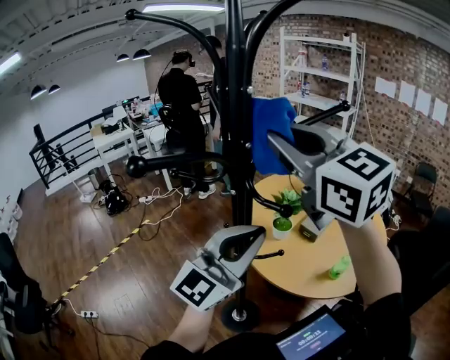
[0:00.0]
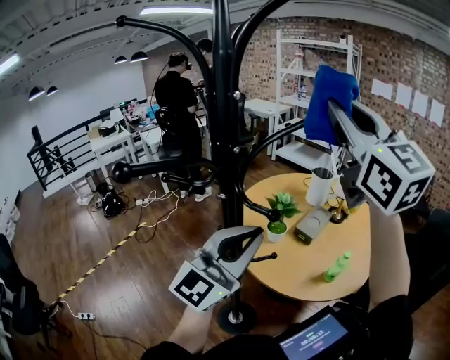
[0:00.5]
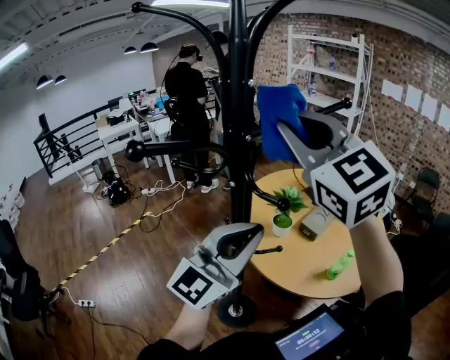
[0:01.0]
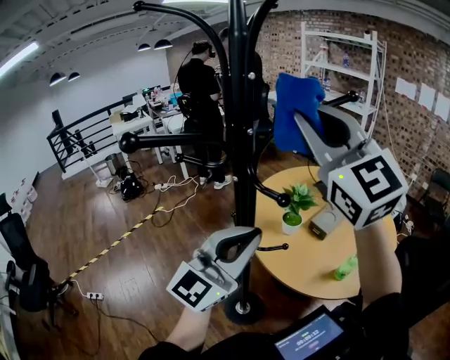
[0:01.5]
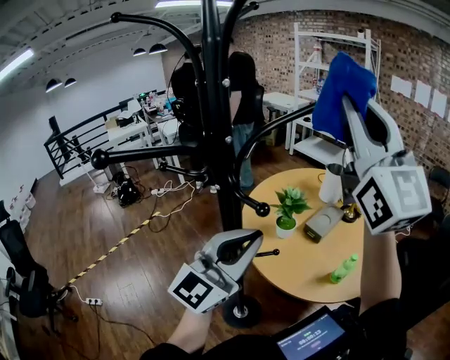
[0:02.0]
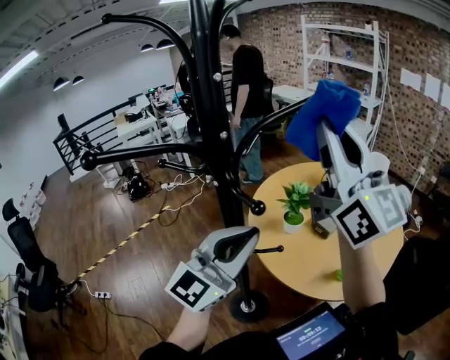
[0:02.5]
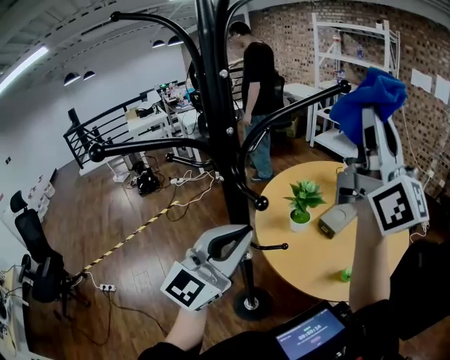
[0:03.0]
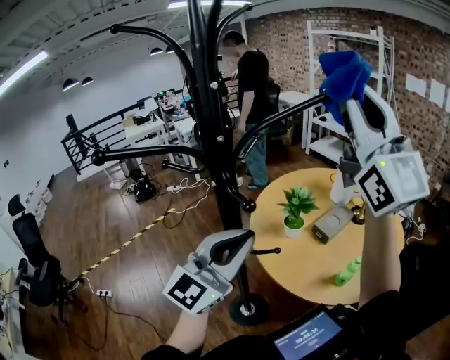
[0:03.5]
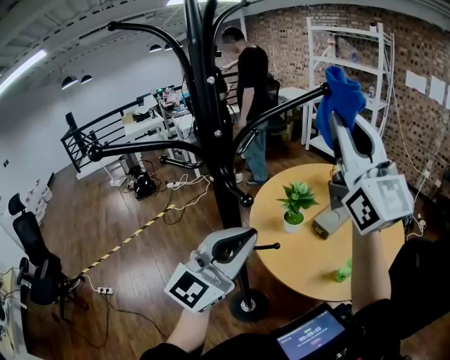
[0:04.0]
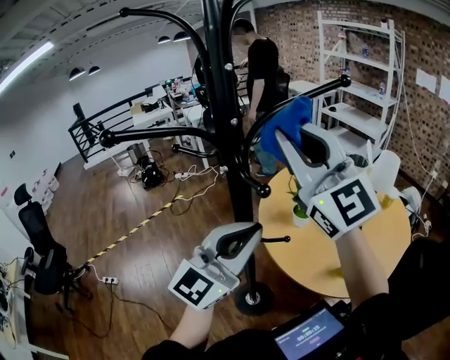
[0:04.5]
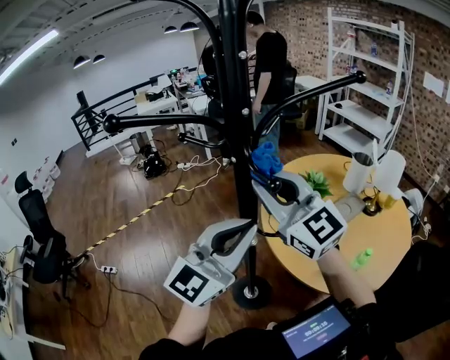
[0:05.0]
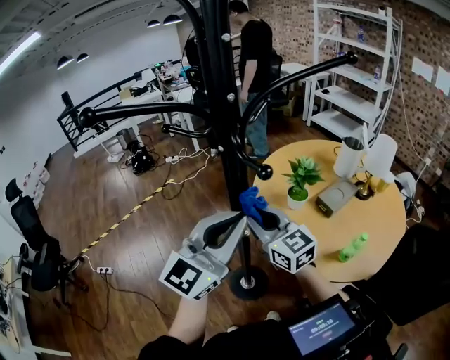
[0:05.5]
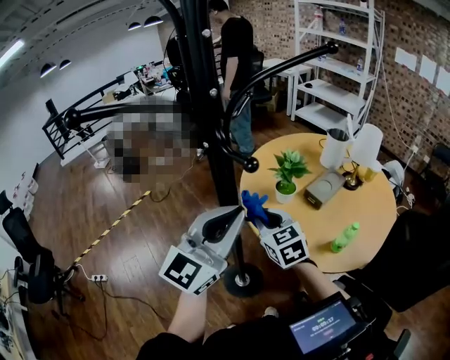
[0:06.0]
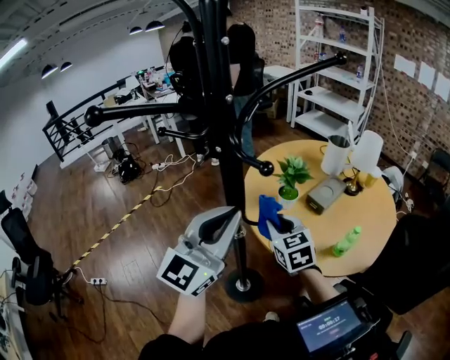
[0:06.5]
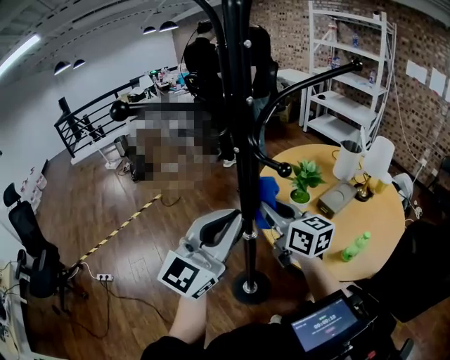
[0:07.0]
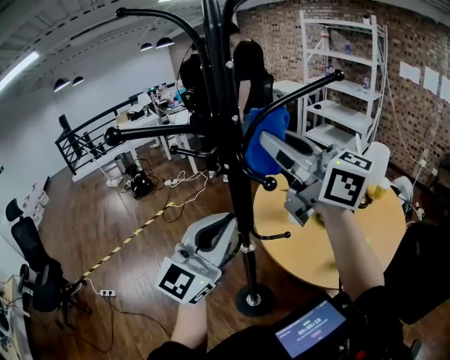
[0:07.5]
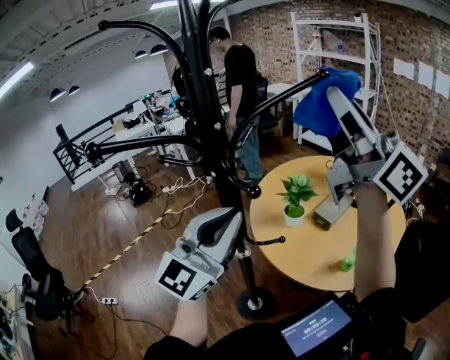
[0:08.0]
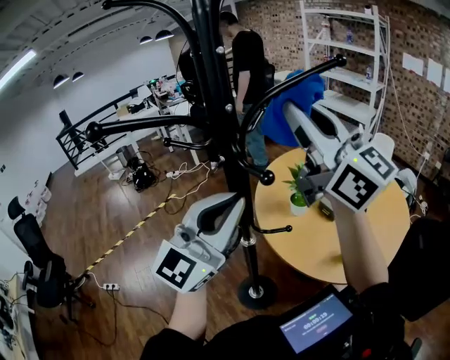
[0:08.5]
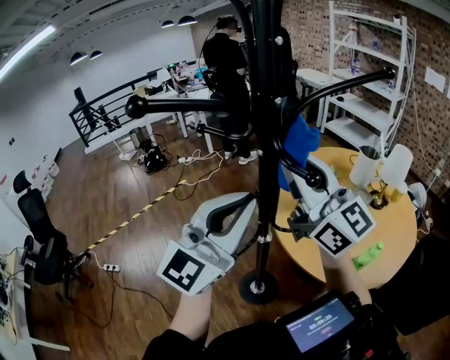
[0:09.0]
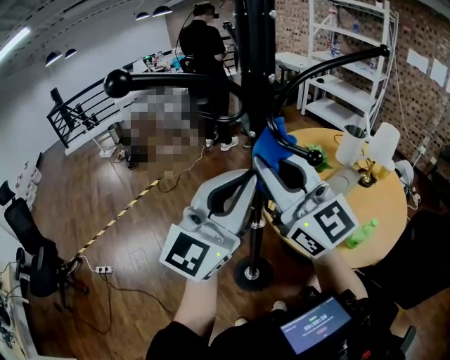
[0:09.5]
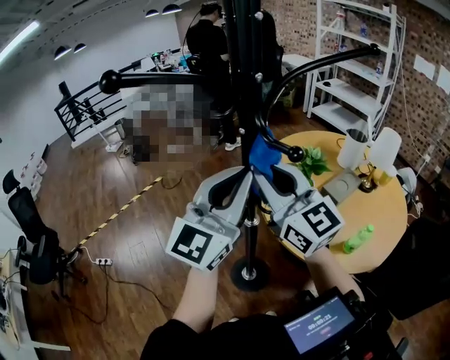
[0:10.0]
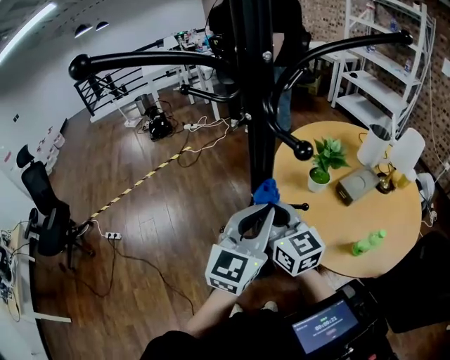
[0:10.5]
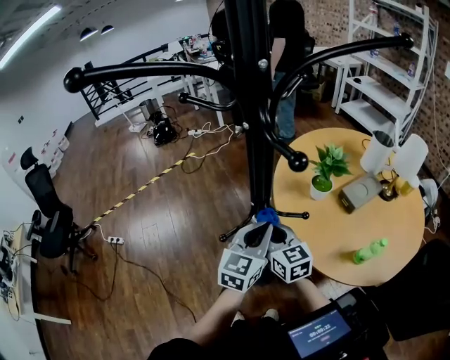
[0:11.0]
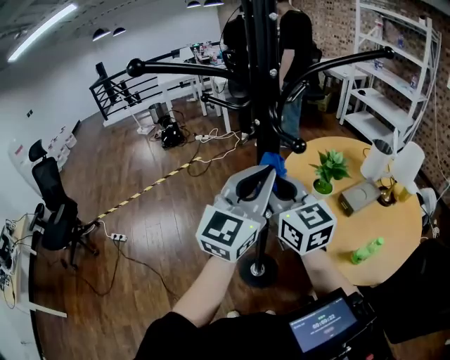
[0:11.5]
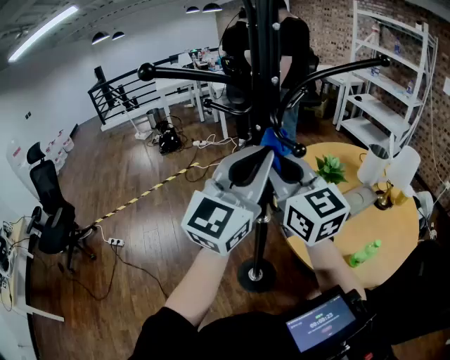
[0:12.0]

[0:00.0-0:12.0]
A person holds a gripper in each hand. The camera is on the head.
0:00.0 to 0:02.0: The right gripper swings left and right, approximately 15 cm each way, with 2 reversals, and swivels roughly 30 degrees.
0:02.0 to 0:04.0: The right gripper moves up and down over about 5 cm, changing direction 2 times.
0:04.0 to 0:06.0: The left gripper goes roughly 5 cm downward; the right gripper heads downward, covering approximately 40 cm, and angles its fingers downward, by about 60 degrees.
0:06.0 to 0:08.0: The left gripper moves upward, approximately 5 cm, while the right gripper goes roughly 40 cm upward, and tips its fingers upward by roughly 60 degrees.
0:08.0 to 0:10.0: The right gripper moves downward and to the left, roughly 30 cm, and changes its angle by some 30 degrees.
0:10.0 to 0:12.0: The left gripper moves roughly 25 cm downward and comes back, while the right gripper moves approximately 30 cm downward and comes back.

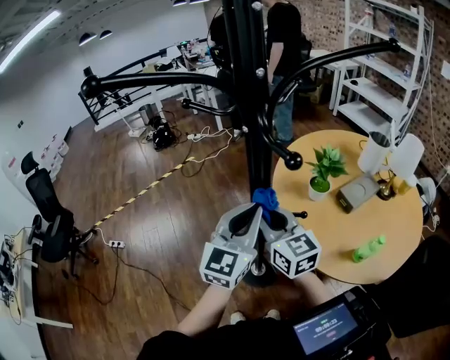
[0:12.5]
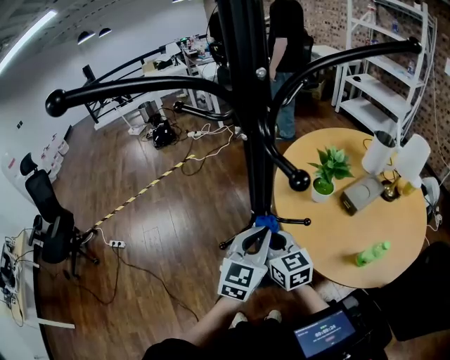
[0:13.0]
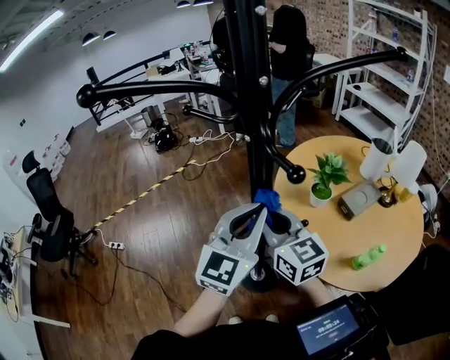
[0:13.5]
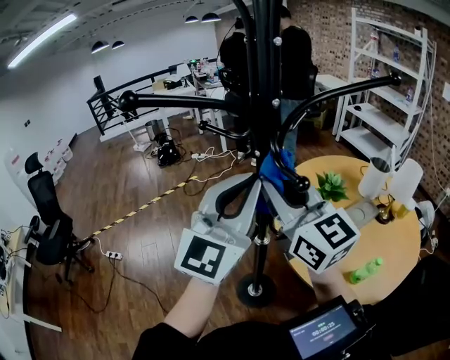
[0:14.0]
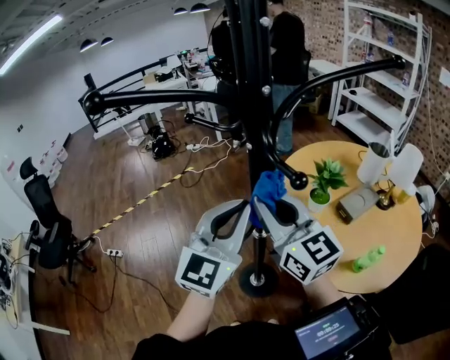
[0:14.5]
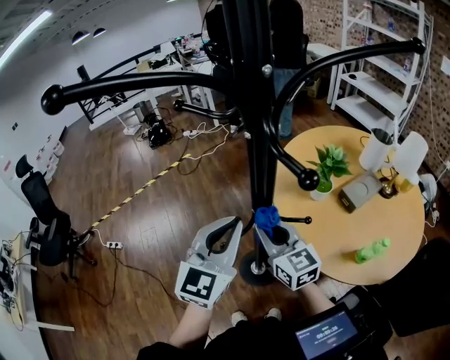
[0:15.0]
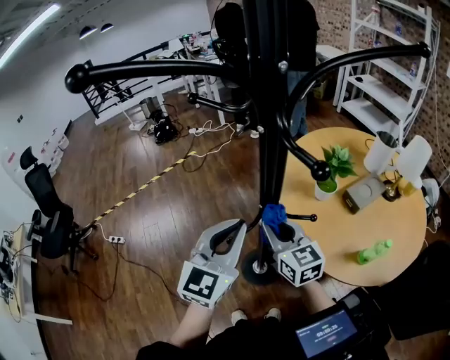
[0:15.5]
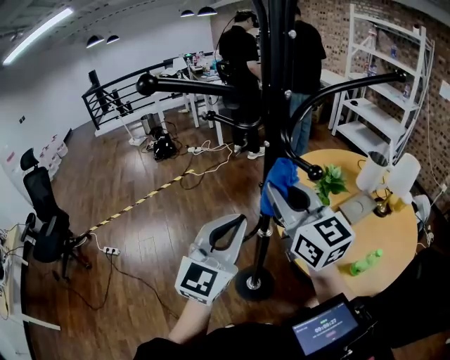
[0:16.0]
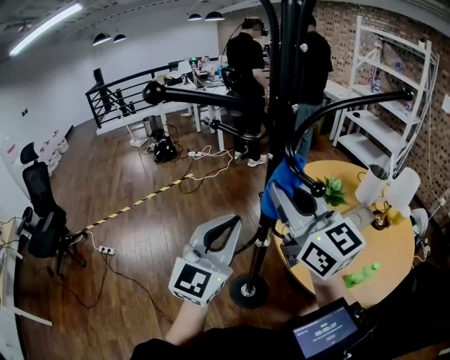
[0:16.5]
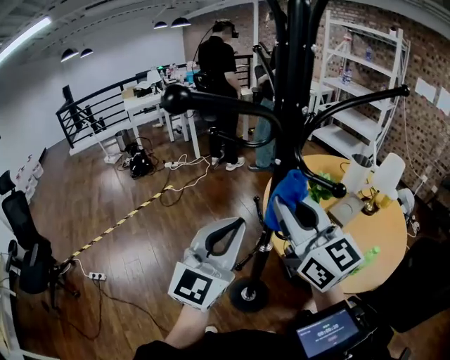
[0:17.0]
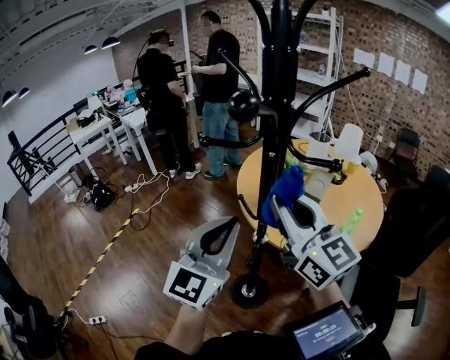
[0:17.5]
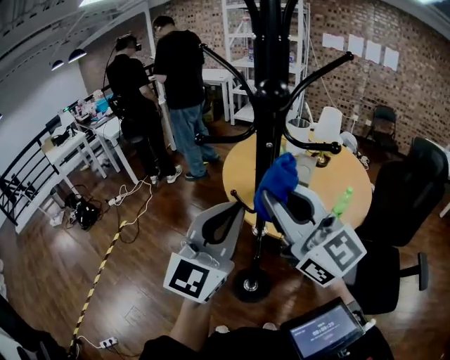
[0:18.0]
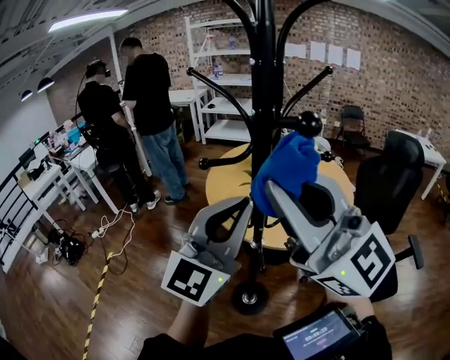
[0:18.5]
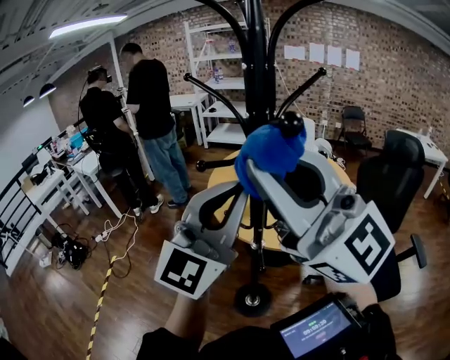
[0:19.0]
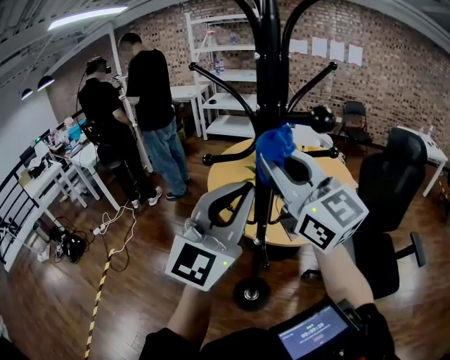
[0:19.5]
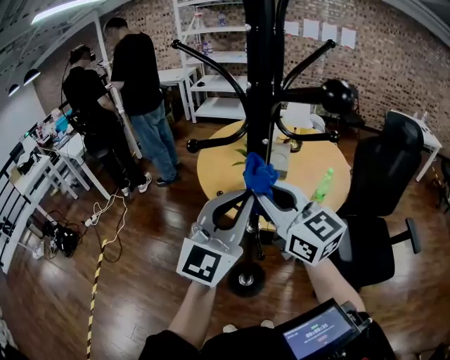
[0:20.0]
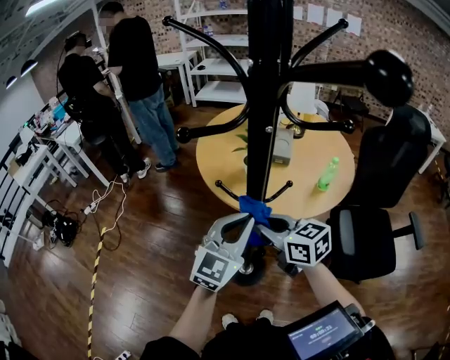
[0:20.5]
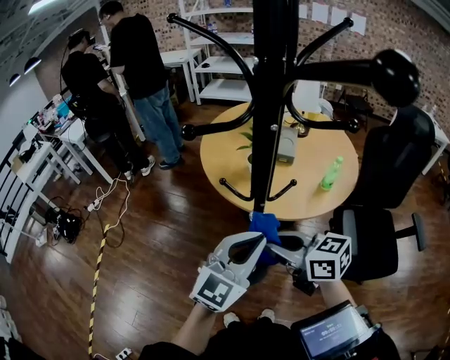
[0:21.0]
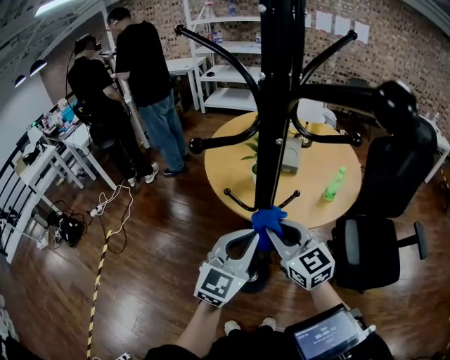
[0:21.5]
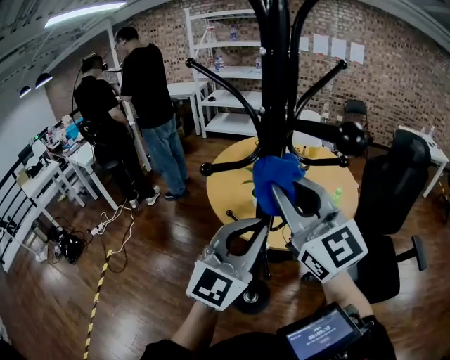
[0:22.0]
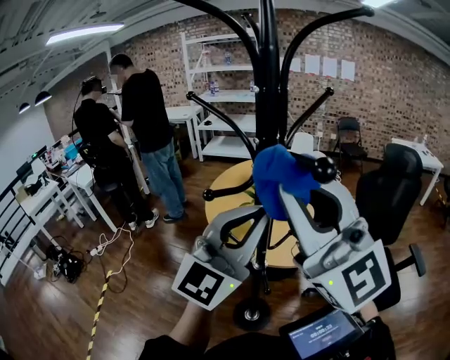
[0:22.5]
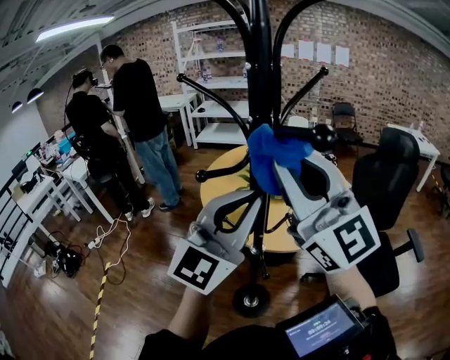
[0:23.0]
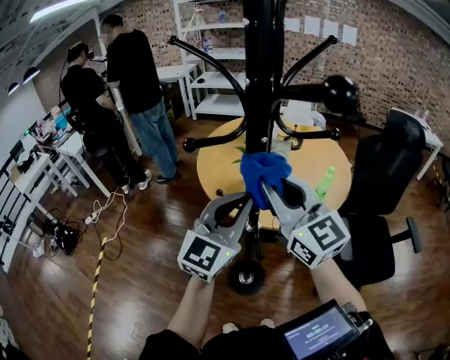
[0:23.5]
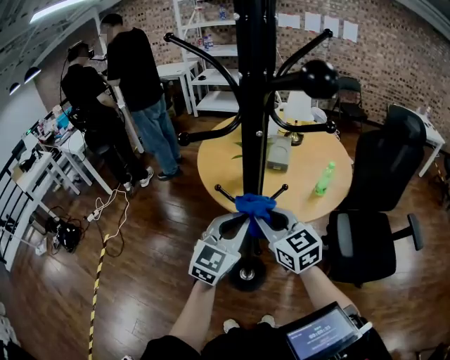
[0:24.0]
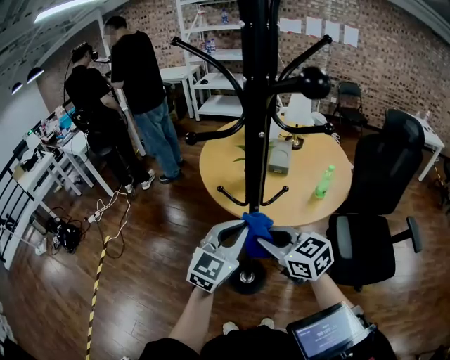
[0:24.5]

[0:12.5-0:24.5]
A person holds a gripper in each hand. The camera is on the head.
0:12.5 to 0:14.5: The left gripper swings up and down, about 30 cm each way, with 2 reversals. The right gripper goes up and down, approximately 30 cm each way, reversing 2 times.
0:14.5 to 0:16.5: The right gripper travels downward and back again, roughly 20 cm each way. The left gripper moves approximately 10 cm downward and comes back.
0:16.5 to 0:18.5: The left gripper heads upward, covering some 10 cm, and changes its angle by about 60 degrees. The right gripper moves roughly 20 cm, and swivels some 50 degrees.
0:18.5 to 0:20.5: The left gripper heads downward, covering approximately 20 cm, and rotates roughly 20 degrees; the right gripper is displaced downward by about 35 cm, and angles its fingers downward, by about 40 degrees.
0:20.5 to 0:22.5: The left gripper shifts approximately 25 cm upward, and turns by roughly 30 degrees, while the right gripper shifts about 40 cm upward, and angles its fingers upward, by about 40 degrees.
0:22.5 to 0:24.5: The two grippers go about 30 cm downward. The left gripper turns by about 30 degrees, while the right gripper tips its fingers downward by some 50 degrees.

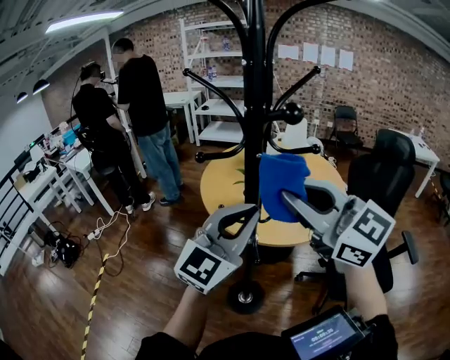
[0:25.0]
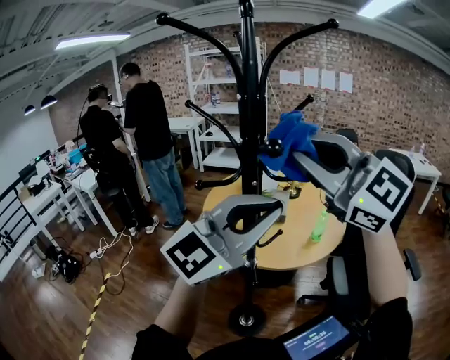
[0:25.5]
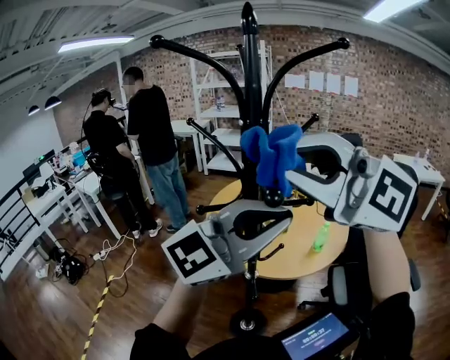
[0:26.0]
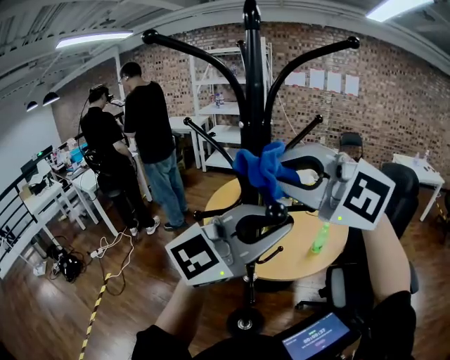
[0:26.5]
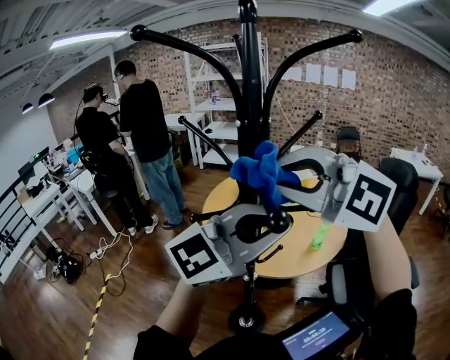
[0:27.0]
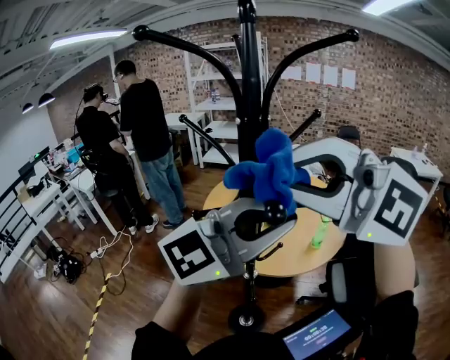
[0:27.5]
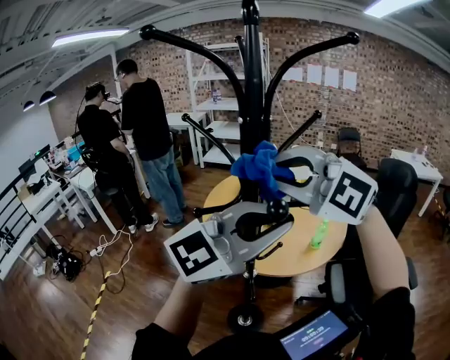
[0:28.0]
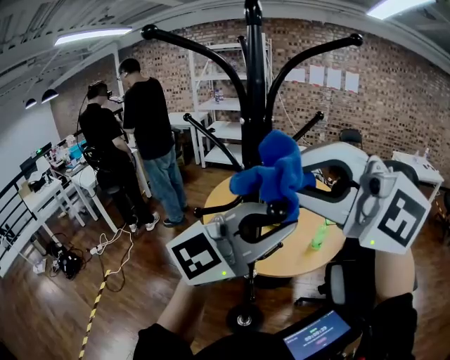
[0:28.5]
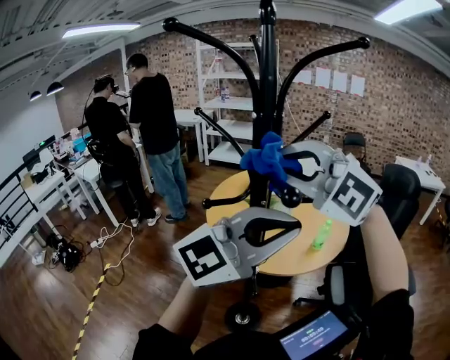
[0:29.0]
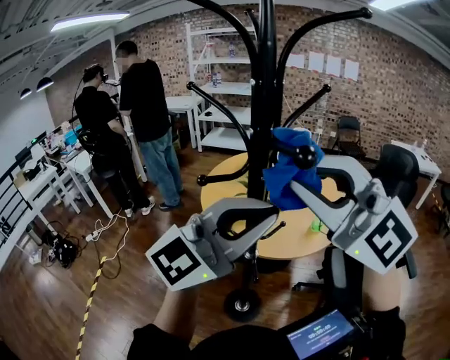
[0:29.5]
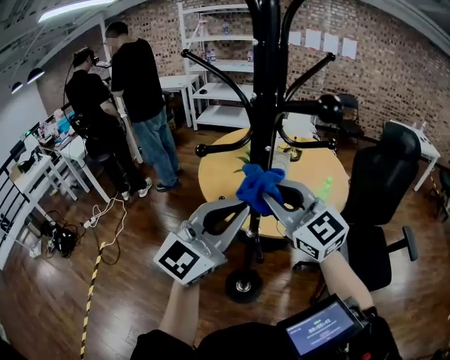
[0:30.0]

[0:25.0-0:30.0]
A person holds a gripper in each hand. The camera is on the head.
0:25.0 to 0:27.5: The right gripper goes up and down, some 15 cm each way, reversing 2 times, and rolls counterclockwise, seen from behind, by roughly 50 degrees; the left gripper travels upward by about 15 cm, and swivels approximately 30 degrees.
0:27.5 to 0:30.0: The right gripper goes up and down, approximately 25 cm each way, reversing 2 times, and rotates around the line of its fingers by about 40 degrees, clockwise from behind, while the left gripper goes roughly 15 cm downward, and swivels approximately 30 degrees.
